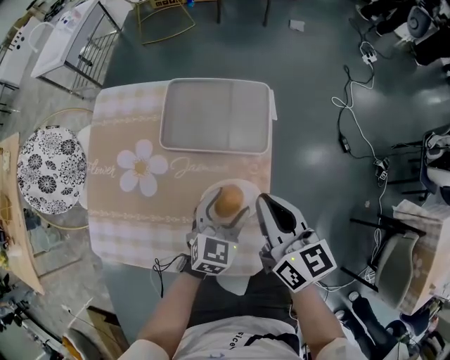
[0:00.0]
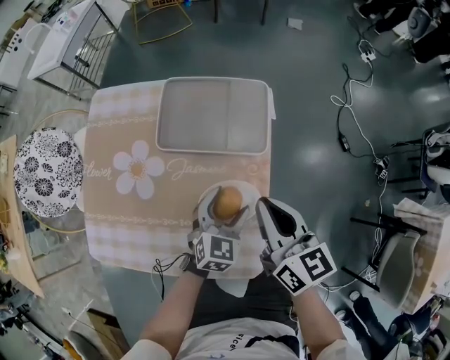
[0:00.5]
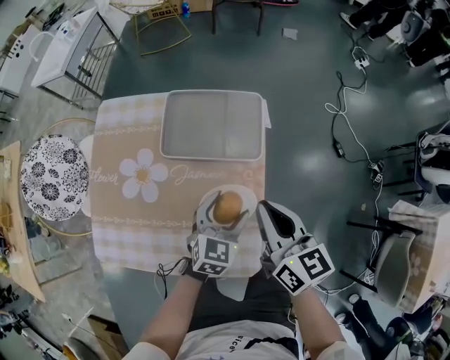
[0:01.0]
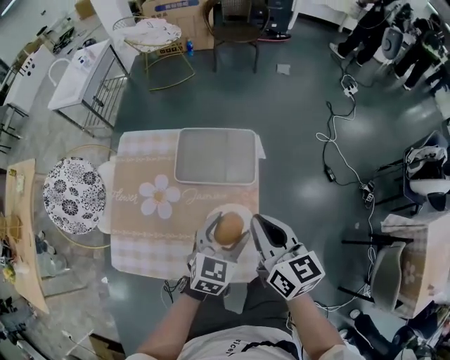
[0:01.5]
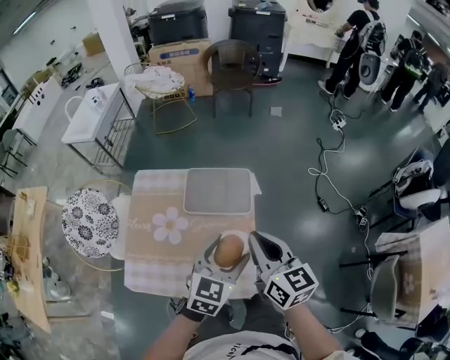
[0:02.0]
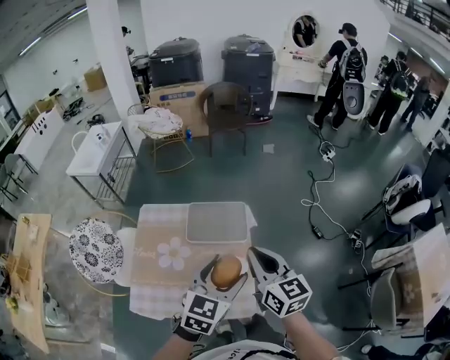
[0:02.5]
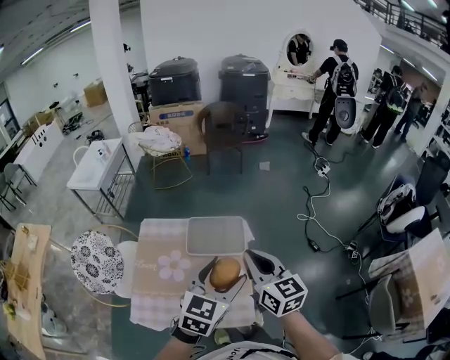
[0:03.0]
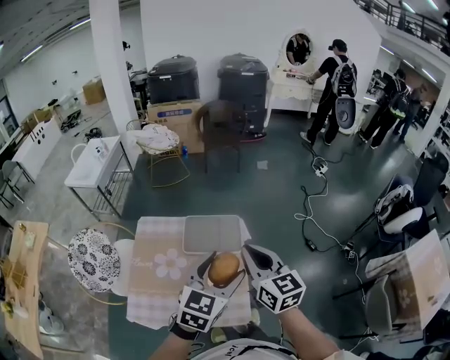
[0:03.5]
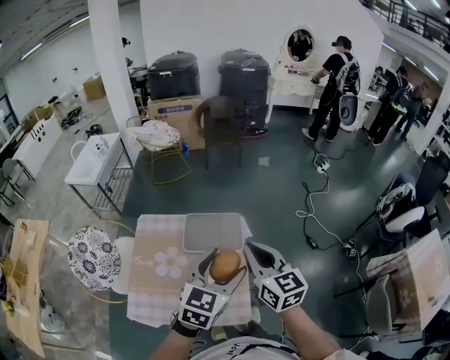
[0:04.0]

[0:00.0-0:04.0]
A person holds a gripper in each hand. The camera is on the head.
0:00.0 to 0:02.0: The two grippers go about 25 cm upward.
0:02.0 to 0:04.0: The right gripper moves upward, roughly 10 cm. Meanwhile the left gripper heads upward, covering approximately 15 cm.

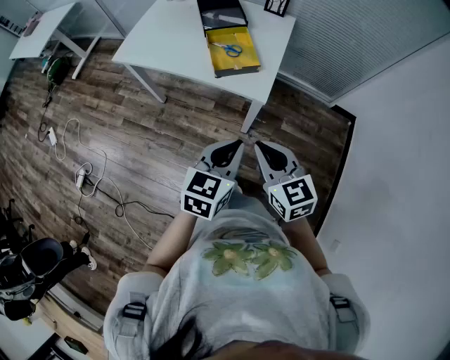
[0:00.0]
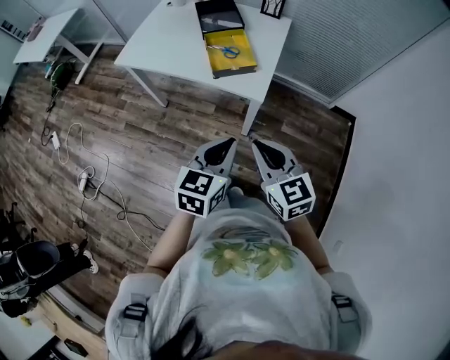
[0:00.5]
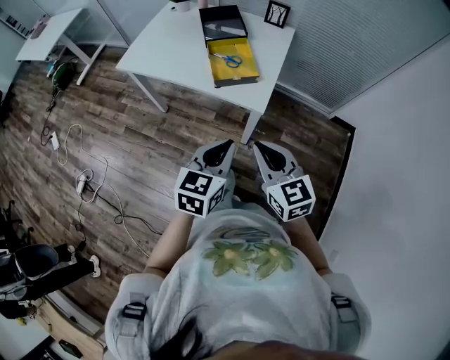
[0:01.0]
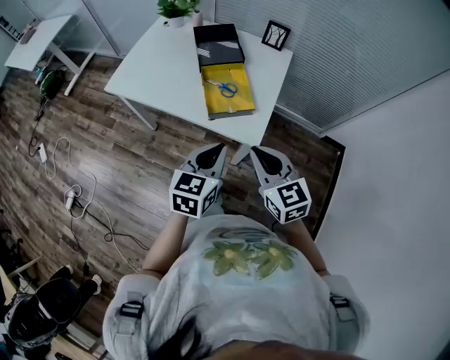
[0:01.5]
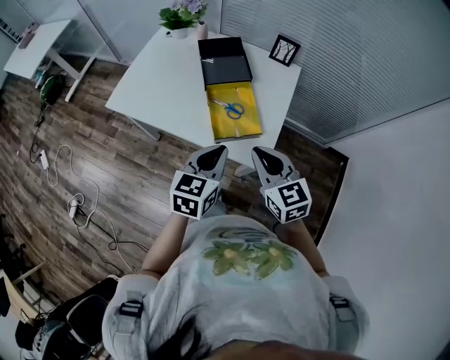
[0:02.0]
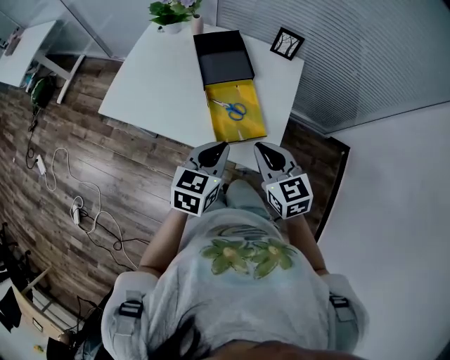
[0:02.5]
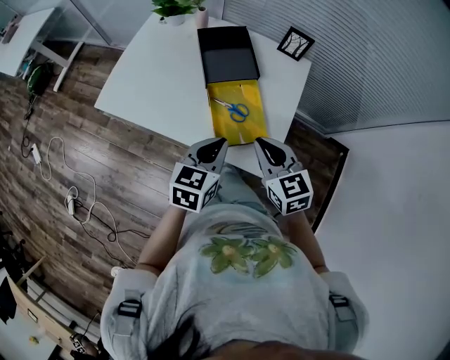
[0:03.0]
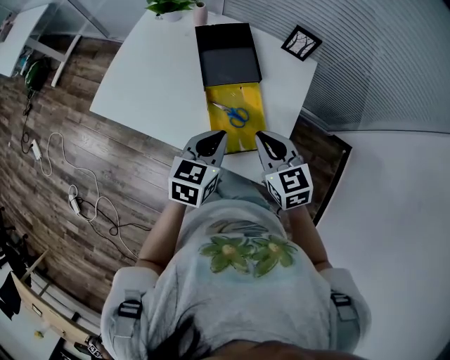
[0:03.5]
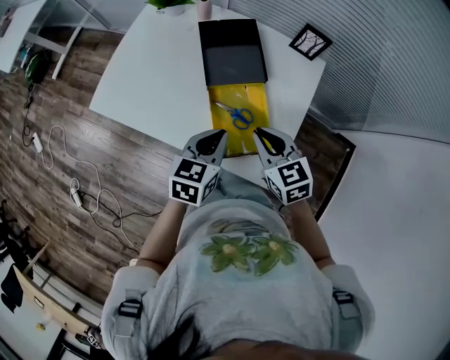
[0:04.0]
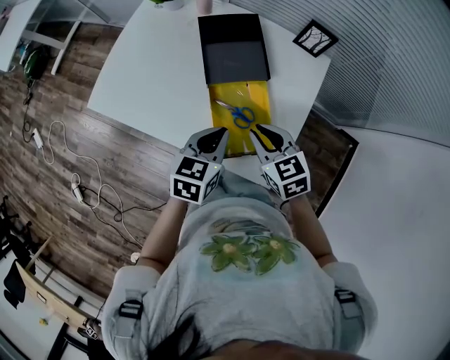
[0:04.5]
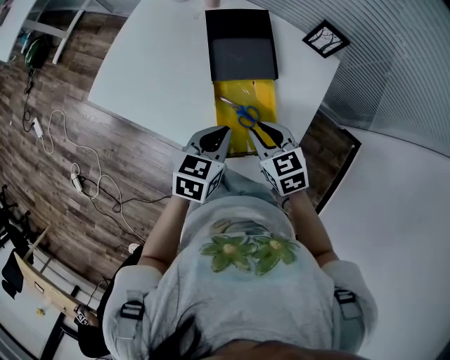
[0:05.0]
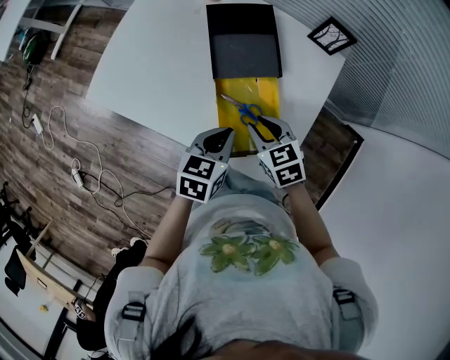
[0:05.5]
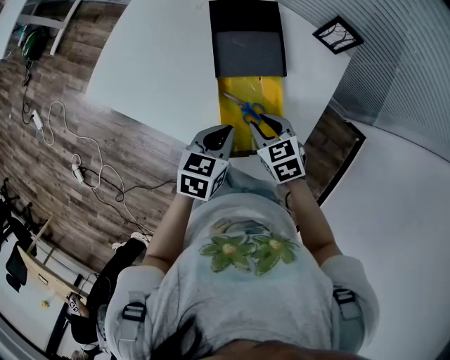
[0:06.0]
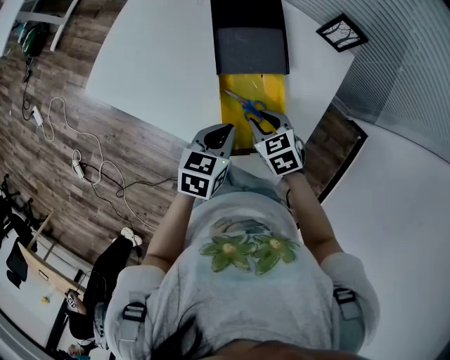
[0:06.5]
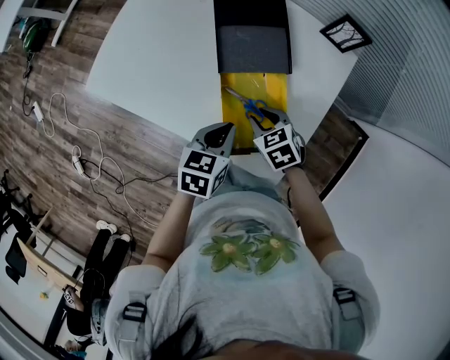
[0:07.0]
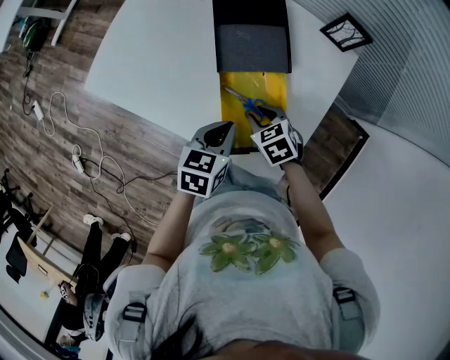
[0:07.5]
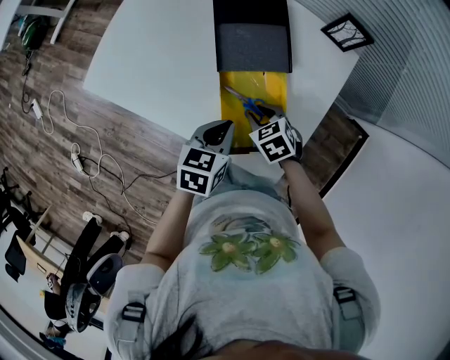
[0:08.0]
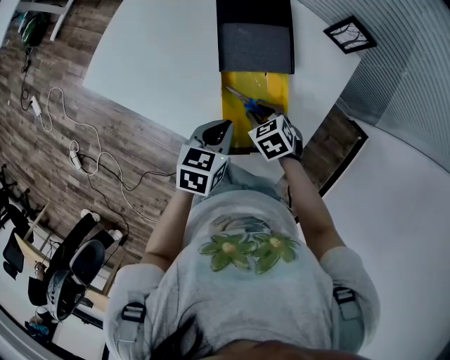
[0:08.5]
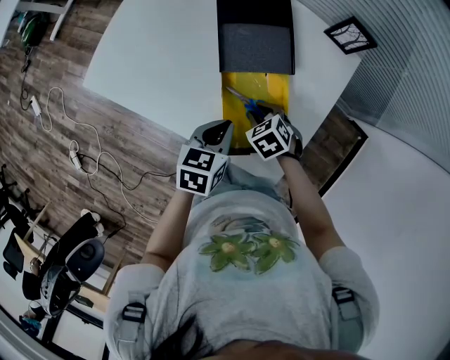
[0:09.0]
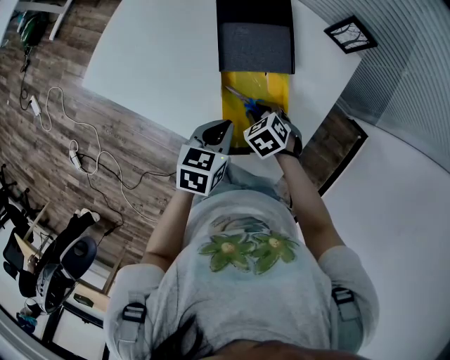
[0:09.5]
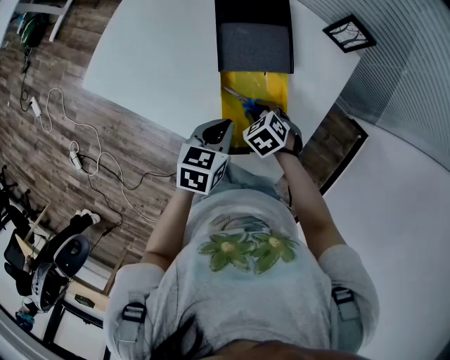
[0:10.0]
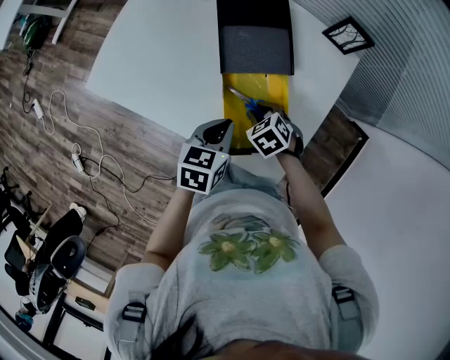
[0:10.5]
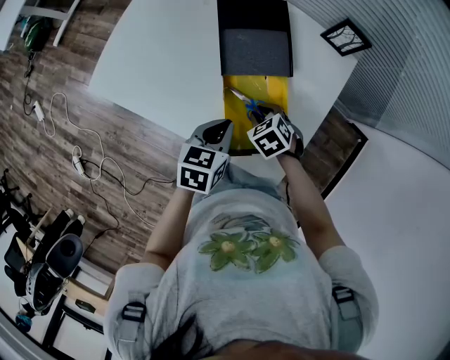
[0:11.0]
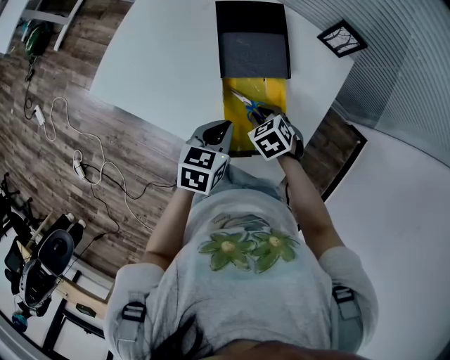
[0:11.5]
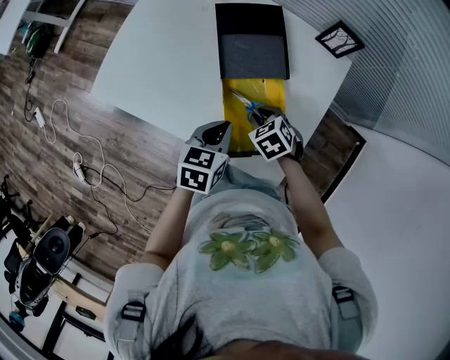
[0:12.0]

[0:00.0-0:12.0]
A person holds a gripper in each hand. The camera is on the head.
0:00.0 to 0:02.0: The grippers both shift forward by approximately 25 cm.
0:02.0 to 0:04.0: The two grippers go some 20 cm forward and downward.
0:04.0 to 0:06.0: The right gripper shifts roughly 10 cm downward, and opens its fingers, while the left gripper shifts some 5 cm downward.
0:06.0 to 0:08.0: The right gripper moves downward, about 5 cm.
0:08.0 to 0:12.0: There are only small adjustments of the grippers.

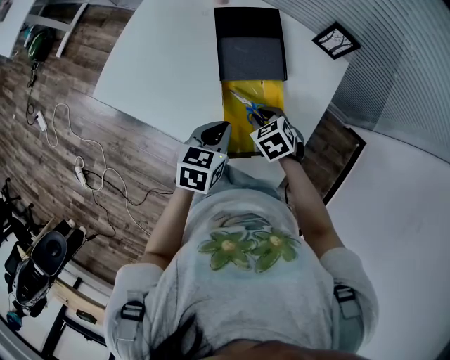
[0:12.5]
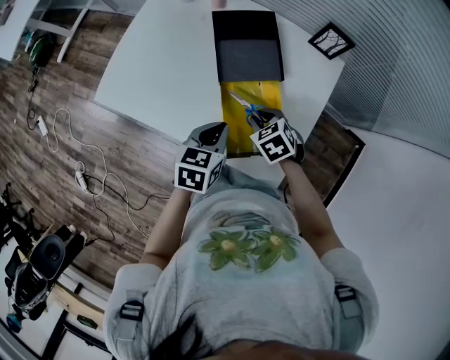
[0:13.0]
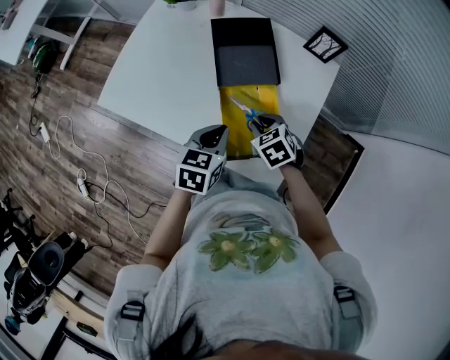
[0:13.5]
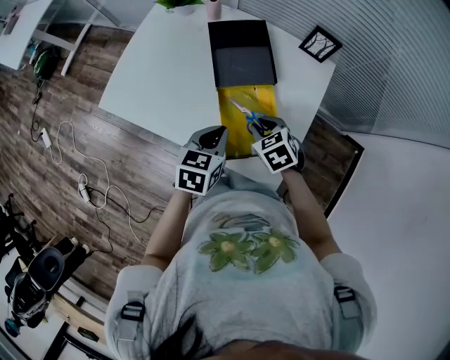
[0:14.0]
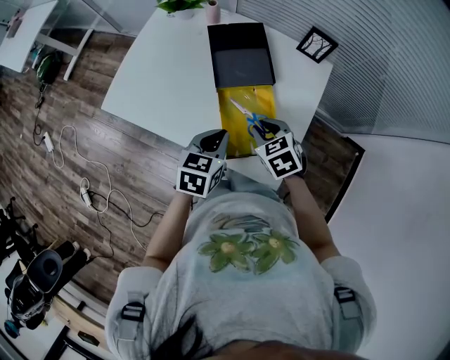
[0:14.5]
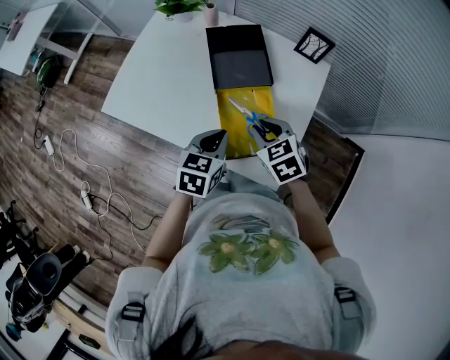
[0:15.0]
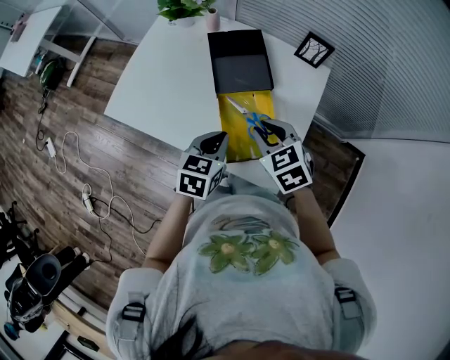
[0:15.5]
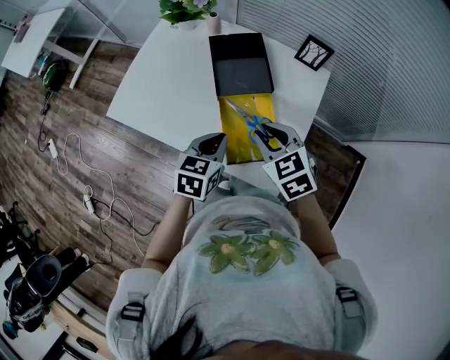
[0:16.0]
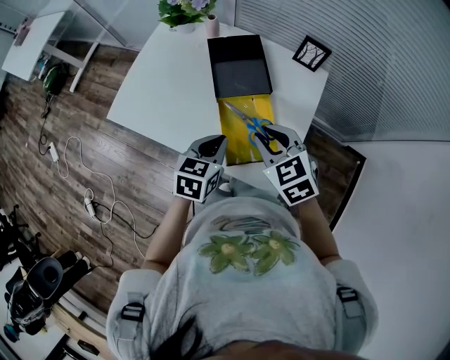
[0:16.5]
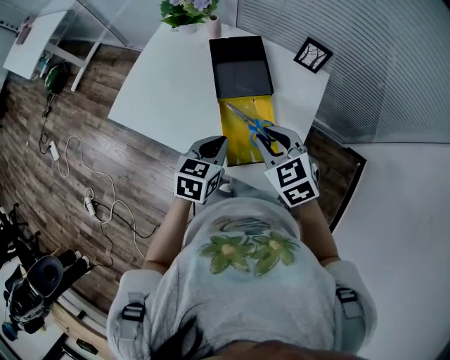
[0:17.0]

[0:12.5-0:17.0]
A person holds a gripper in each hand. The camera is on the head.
0:12.5 to 0:14.5: The right gripper moves upward, some 10 cm.
0:14.5 to 0:17.0: The right gripper heads upward, covering about 10 cm.

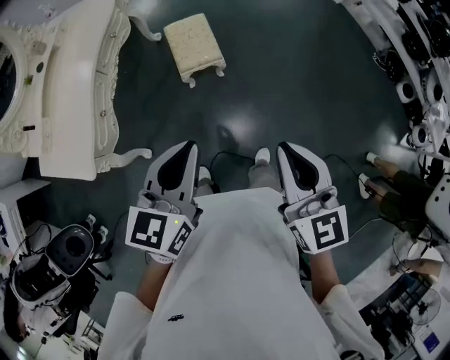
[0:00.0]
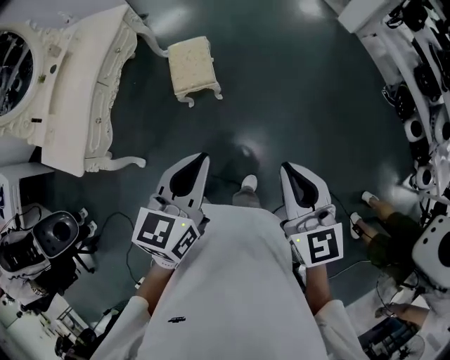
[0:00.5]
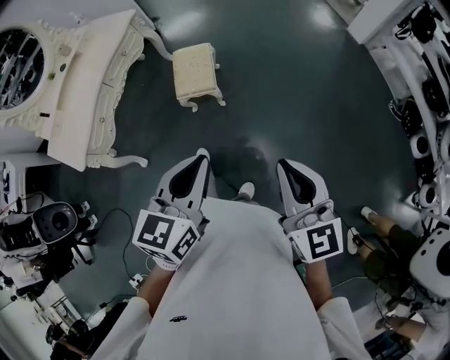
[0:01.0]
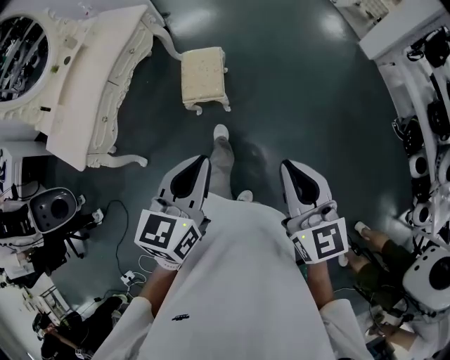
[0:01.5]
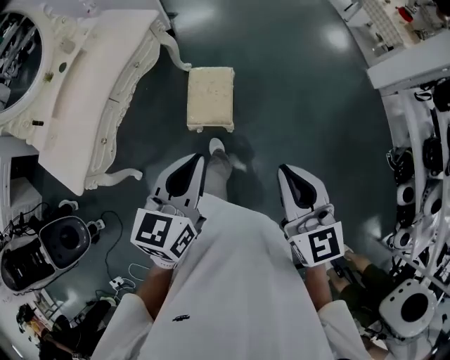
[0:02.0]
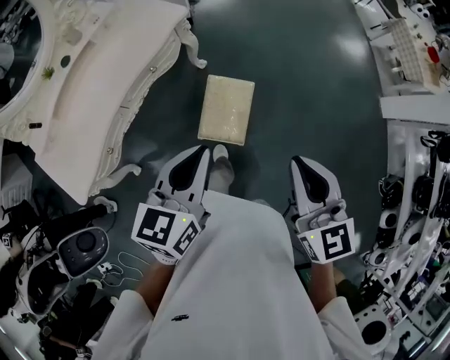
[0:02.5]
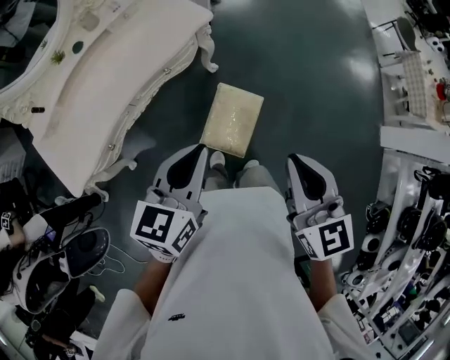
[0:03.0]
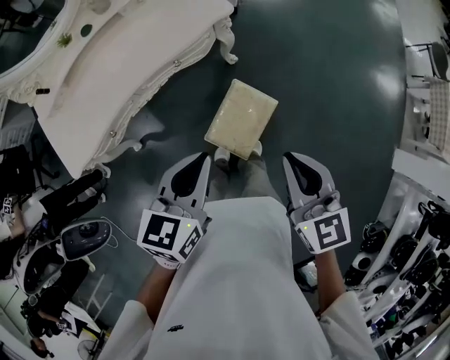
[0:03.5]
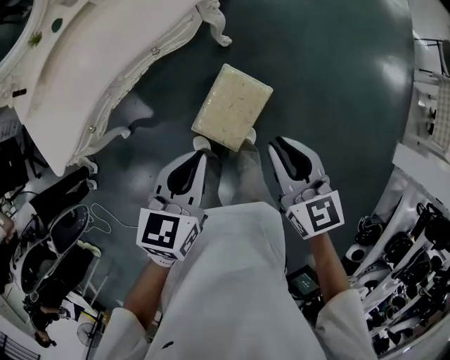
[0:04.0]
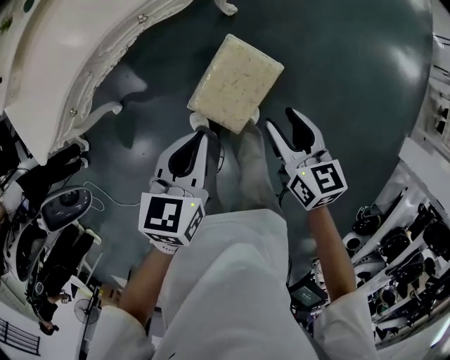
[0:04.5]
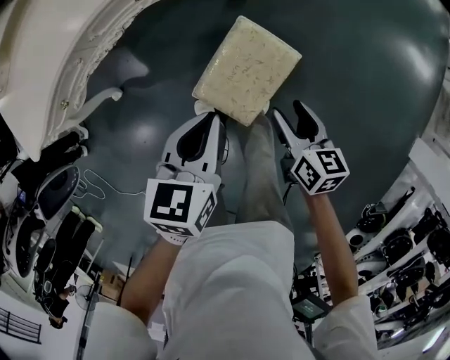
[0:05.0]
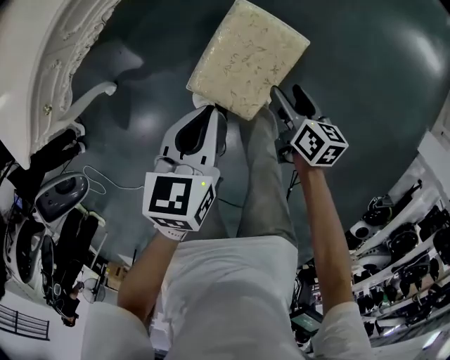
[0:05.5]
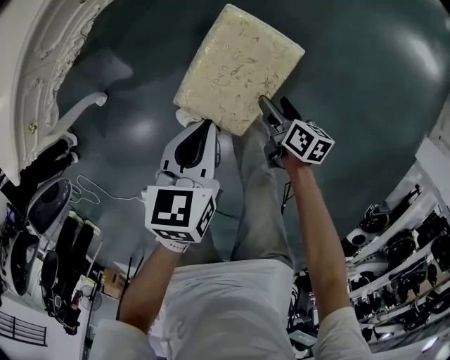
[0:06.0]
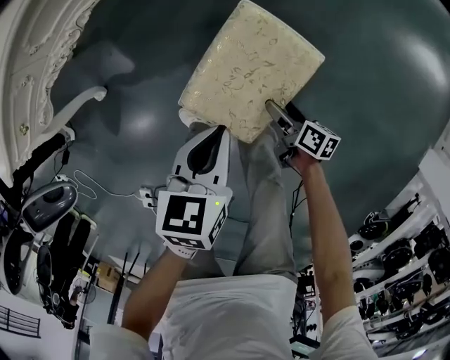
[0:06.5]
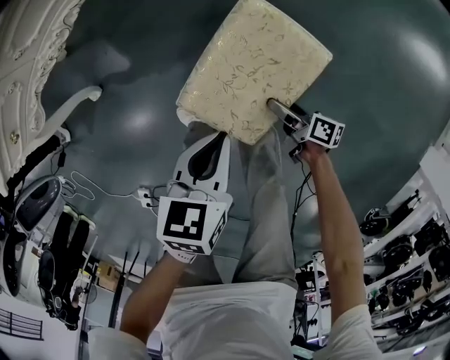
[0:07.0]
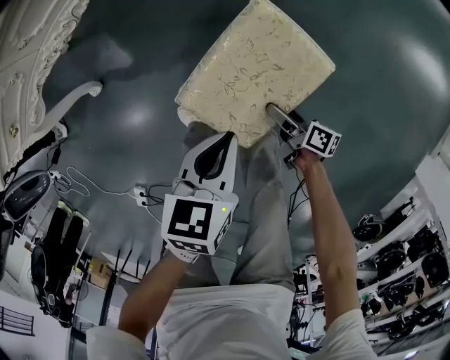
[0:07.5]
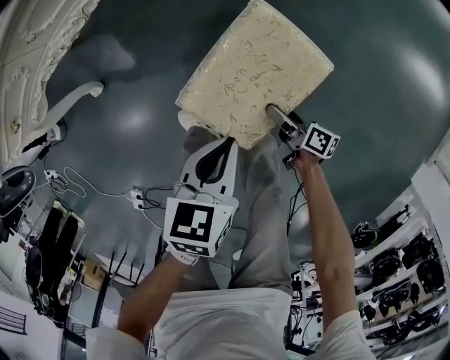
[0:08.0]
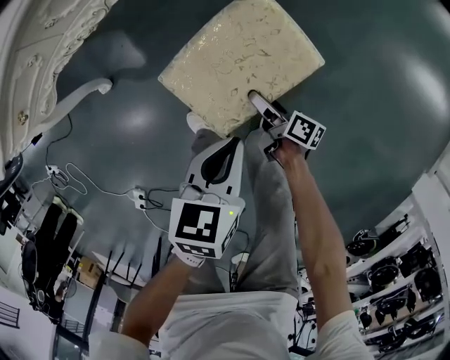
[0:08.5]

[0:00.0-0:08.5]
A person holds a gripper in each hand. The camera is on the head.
0:00.0 to 0:02.0: Both grippers move forward and to the right, approximately 25 cm. The right gripper changes its angle by some 20 degrees.
0:02.0 to 0:04.0: The left gripper moves some 30 cm, and swivels about 30 degrees; the right gripper changes place by approximately 40 cm, and rotates about 30 degrees.
0:04.0 to 0:06.5: The left gripper moves downward, approximately 35 cm. Meanwhile the right gripper heads downward, covering roughly 50 cm, twists roughly 60 degrees clockwise, seen from behind, and opens.
0:06.5 to 0:08.5: The right gripper is displaced to the left and forward by some 10 cm.
